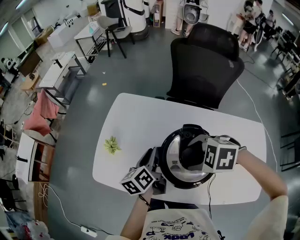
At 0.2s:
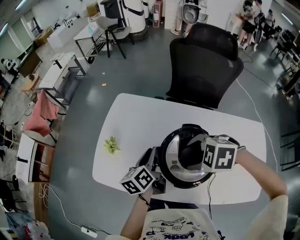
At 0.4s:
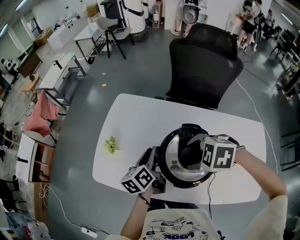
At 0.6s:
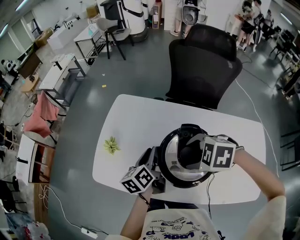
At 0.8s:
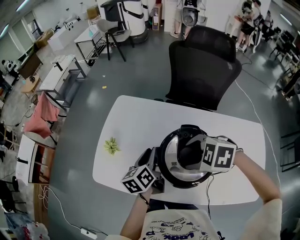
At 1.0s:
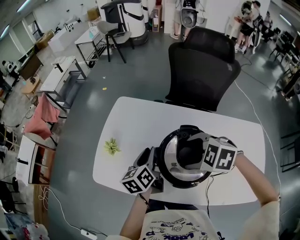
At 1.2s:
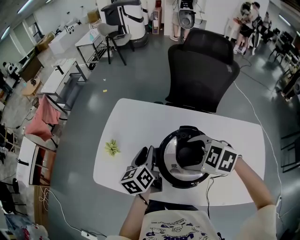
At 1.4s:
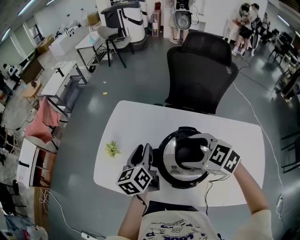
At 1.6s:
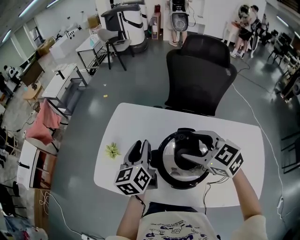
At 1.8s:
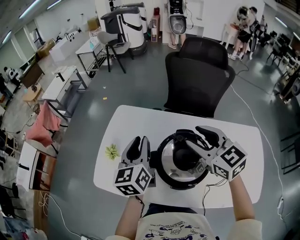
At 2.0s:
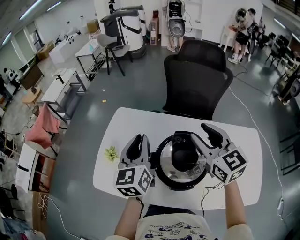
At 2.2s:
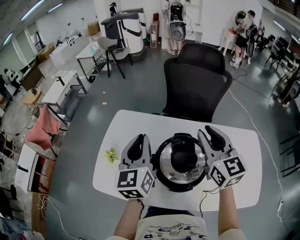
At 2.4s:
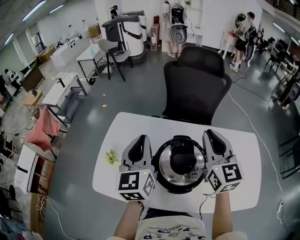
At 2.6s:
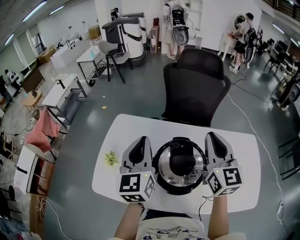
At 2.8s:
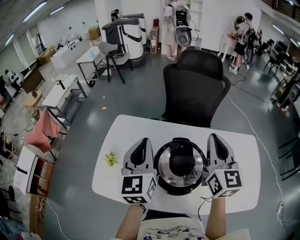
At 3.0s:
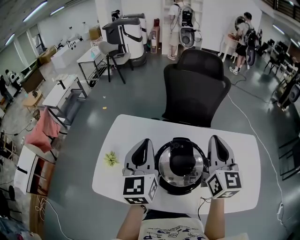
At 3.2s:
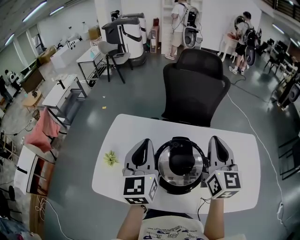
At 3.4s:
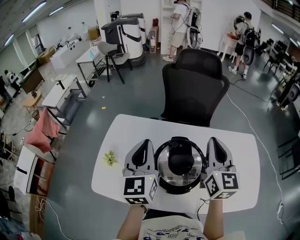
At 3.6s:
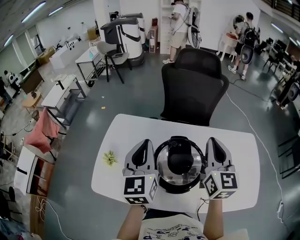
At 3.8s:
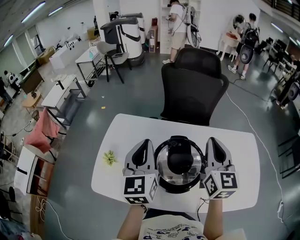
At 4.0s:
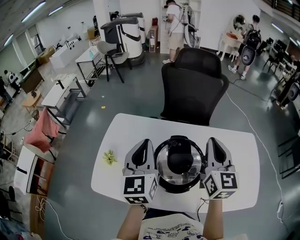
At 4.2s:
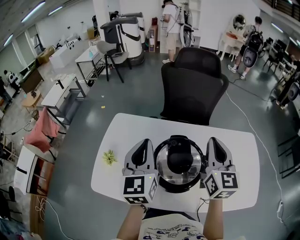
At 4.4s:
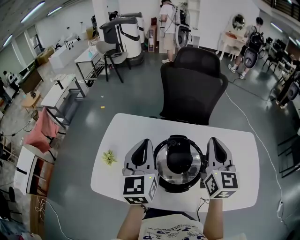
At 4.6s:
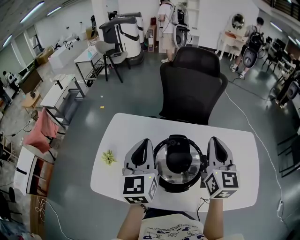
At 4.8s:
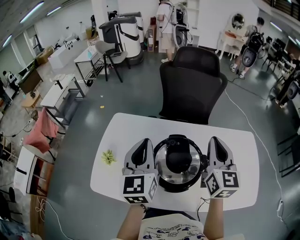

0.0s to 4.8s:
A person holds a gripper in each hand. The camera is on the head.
0.0s to 1.6s: Both grippers move upward, about 10 cm. The right gripper tips its fingers upward by about 30 degrees. The left gripper turns by roughly 20 degrees.
1.6s to 3.2s: The right gripper ends up roughly 15 cm from where it was, angles its fingers upward, by approximately 30 degrees, and closes; the left gripper is displaced upward by roughly 10 cm, changes its angle by some 30 degrees, and closes its fingers.
3.2s to 4.8s: The grippers make only small movements.

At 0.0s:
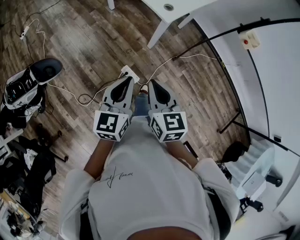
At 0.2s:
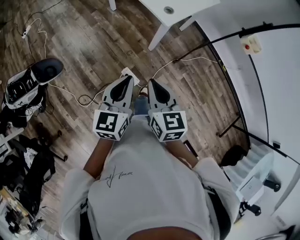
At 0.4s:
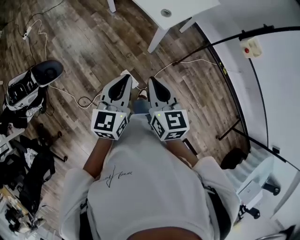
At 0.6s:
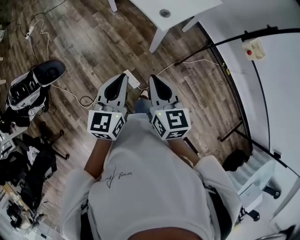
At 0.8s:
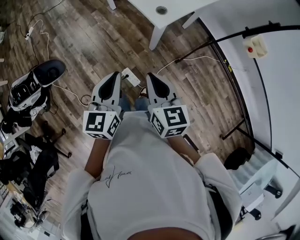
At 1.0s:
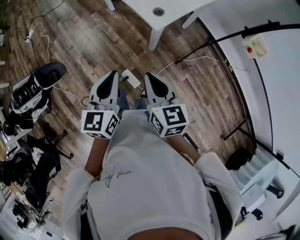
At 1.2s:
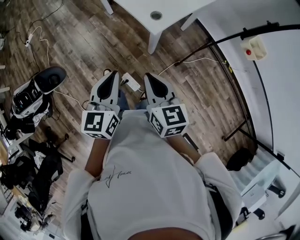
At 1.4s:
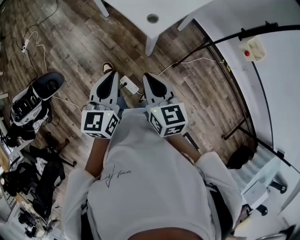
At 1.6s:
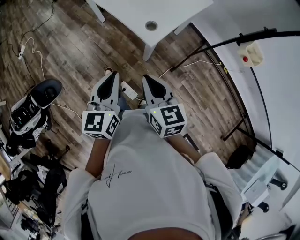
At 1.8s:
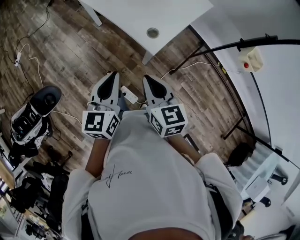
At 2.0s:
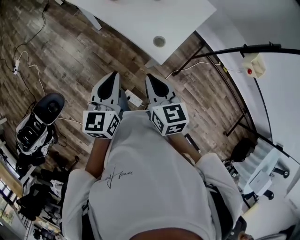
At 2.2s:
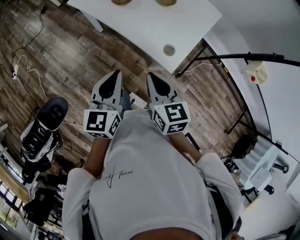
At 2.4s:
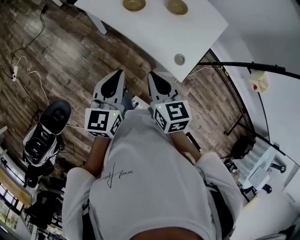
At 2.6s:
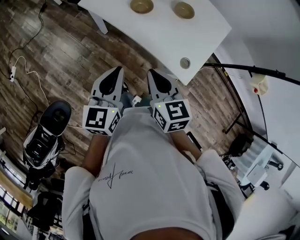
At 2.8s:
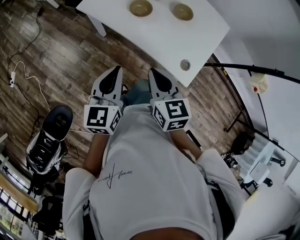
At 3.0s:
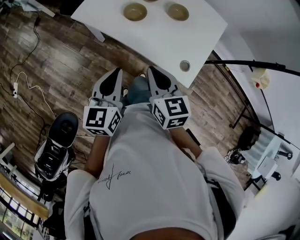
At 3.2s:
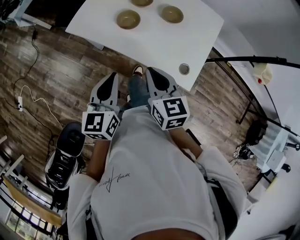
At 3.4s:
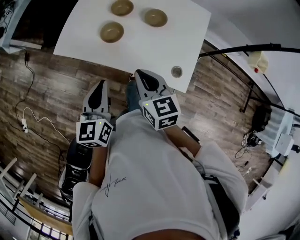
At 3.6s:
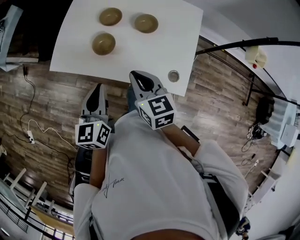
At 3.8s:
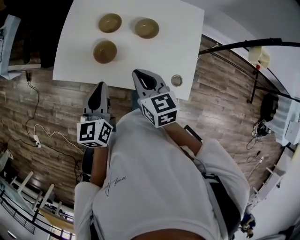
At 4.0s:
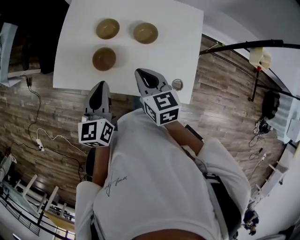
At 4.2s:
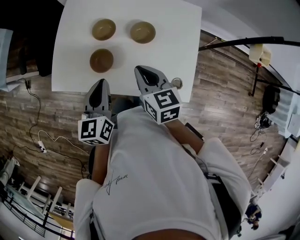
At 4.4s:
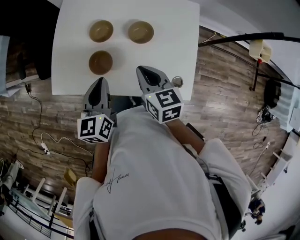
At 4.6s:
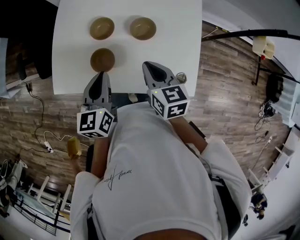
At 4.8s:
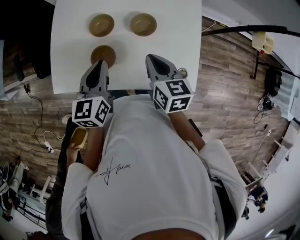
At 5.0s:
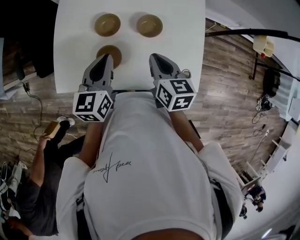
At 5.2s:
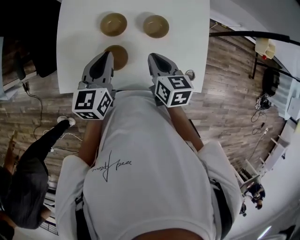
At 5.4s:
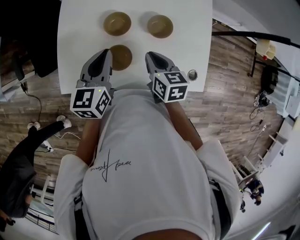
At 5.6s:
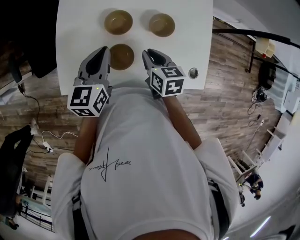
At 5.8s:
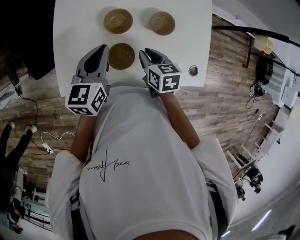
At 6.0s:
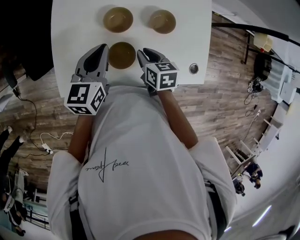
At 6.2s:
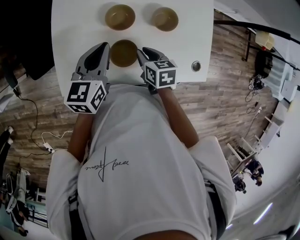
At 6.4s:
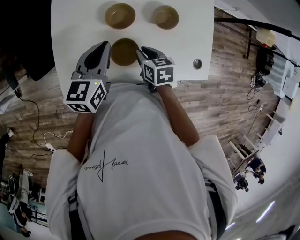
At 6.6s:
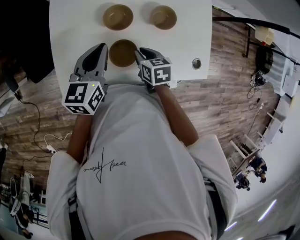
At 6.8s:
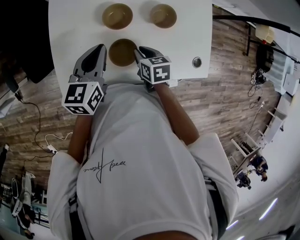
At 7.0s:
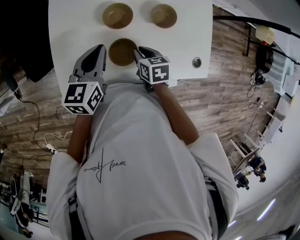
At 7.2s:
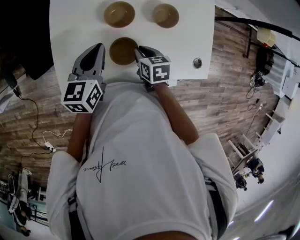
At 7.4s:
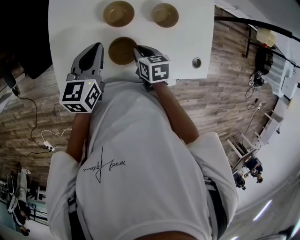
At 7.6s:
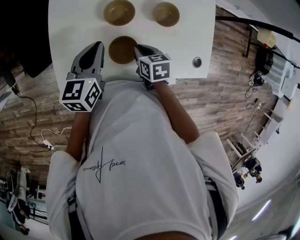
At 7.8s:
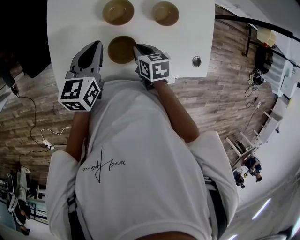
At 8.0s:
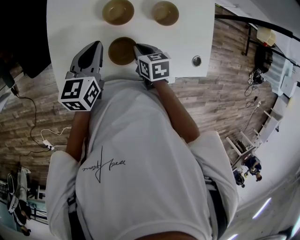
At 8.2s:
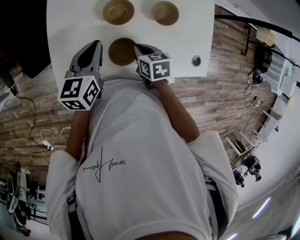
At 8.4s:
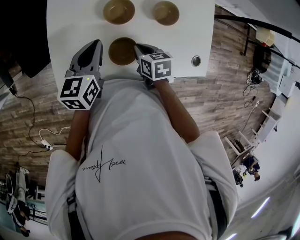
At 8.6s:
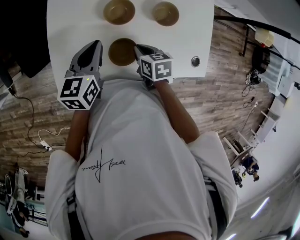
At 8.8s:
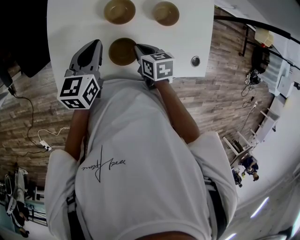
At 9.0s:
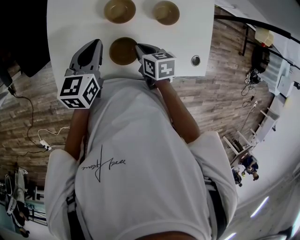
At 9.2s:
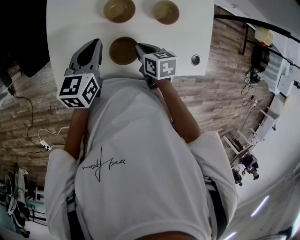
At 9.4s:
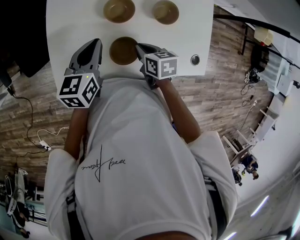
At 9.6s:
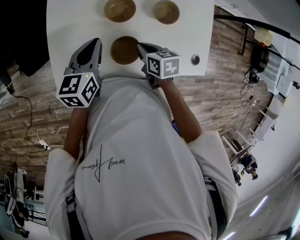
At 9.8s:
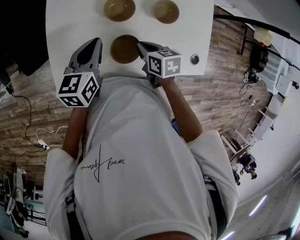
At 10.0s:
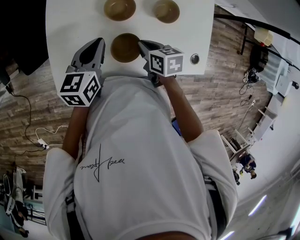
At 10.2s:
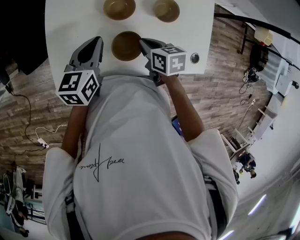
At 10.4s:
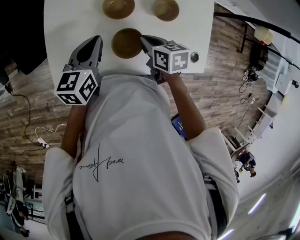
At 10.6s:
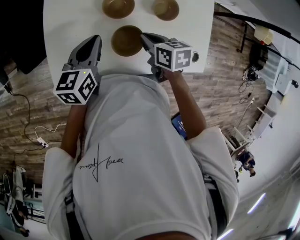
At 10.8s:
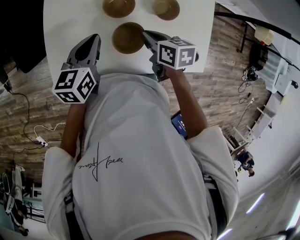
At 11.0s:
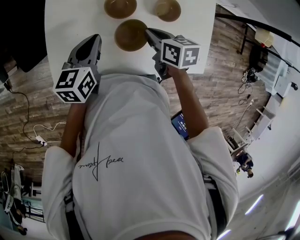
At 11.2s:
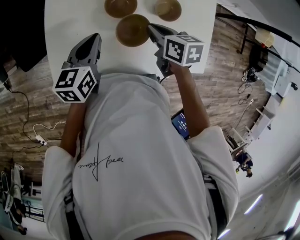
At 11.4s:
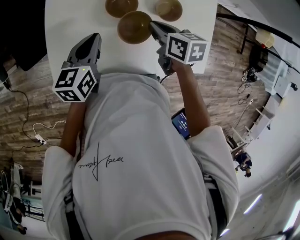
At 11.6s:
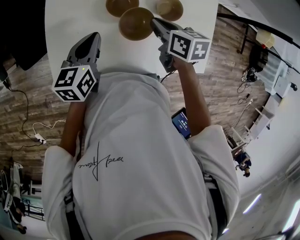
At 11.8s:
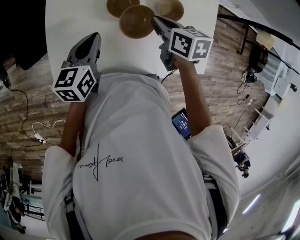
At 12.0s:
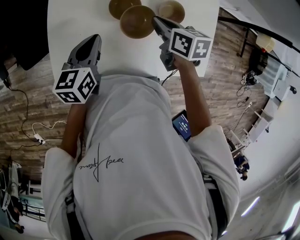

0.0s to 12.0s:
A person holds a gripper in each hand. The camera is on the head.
0.0s to 1.6s: Both grippers move forward, about 20 cm.
1.6s to 3.0s: The two grippers go roughly 35 cm forward and to the left.
3.0s to 4.4s: Both grippers travel together forward, about 20 cm. The right gripper rotates approximately 20 degrees.
4.4s to 6.0s: The left gripper moves forward and to the left, some 15 cm, and turns by roughly 20 degrees. The right gripper heads downward and to the left, covering some 15 cm, and changes its angle by some 20 degrees.
6.0s to 7.6s: The grippers stay close to where they were, moving slightly.
7.6s to 9.0s: The two grippers keep their place.
9.0s to 10.4s: The grippers stay close to where they were, moving slightly.
10.4s to 12.0s: The right gripper is displaced forward by some 10 cm.

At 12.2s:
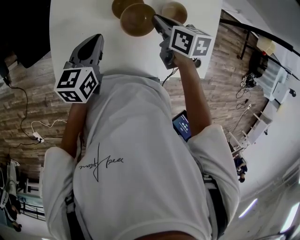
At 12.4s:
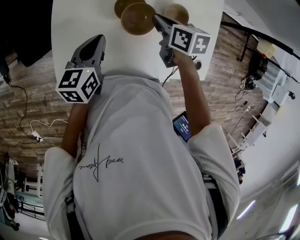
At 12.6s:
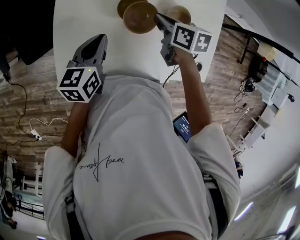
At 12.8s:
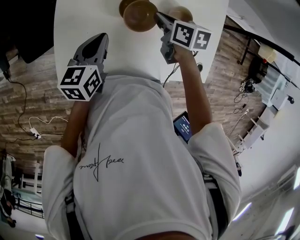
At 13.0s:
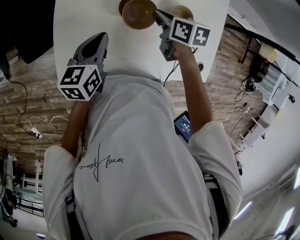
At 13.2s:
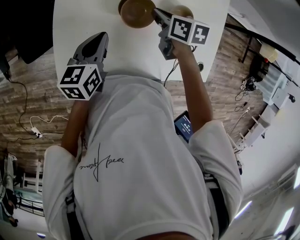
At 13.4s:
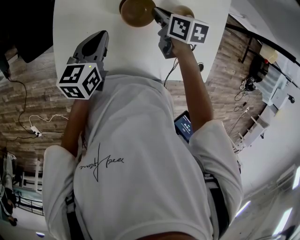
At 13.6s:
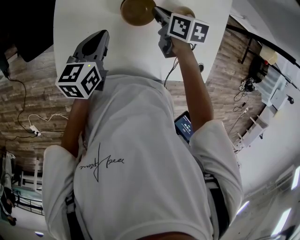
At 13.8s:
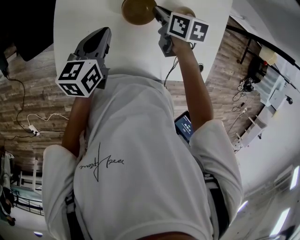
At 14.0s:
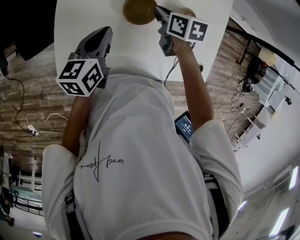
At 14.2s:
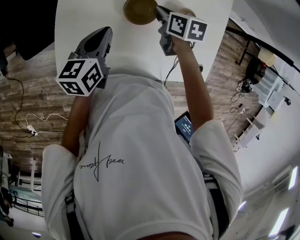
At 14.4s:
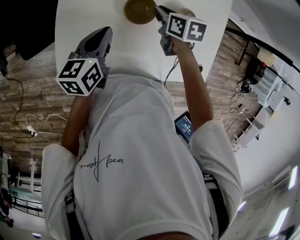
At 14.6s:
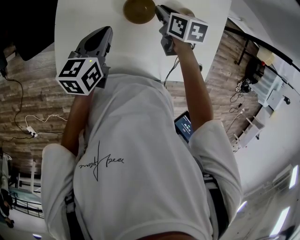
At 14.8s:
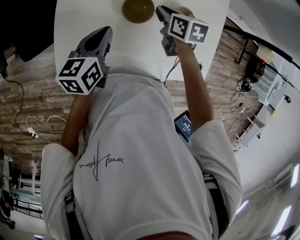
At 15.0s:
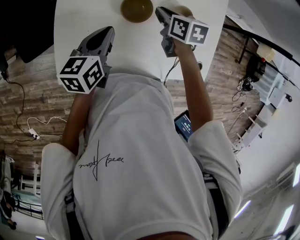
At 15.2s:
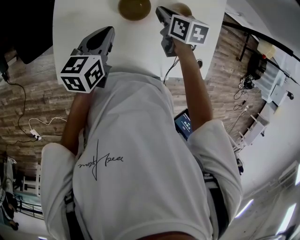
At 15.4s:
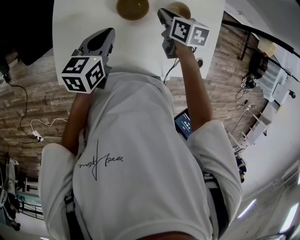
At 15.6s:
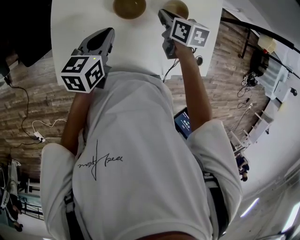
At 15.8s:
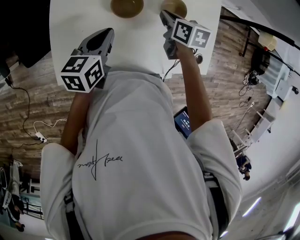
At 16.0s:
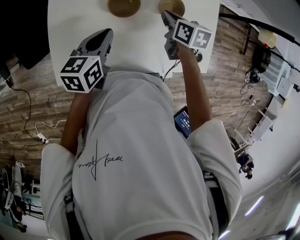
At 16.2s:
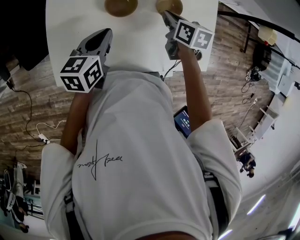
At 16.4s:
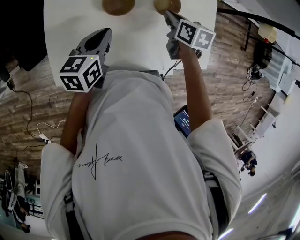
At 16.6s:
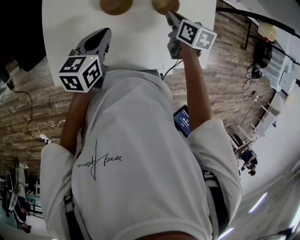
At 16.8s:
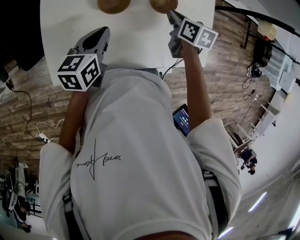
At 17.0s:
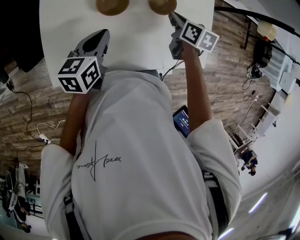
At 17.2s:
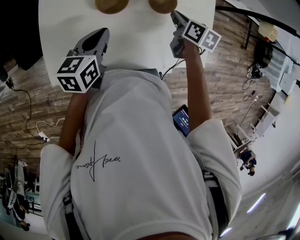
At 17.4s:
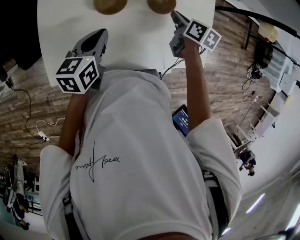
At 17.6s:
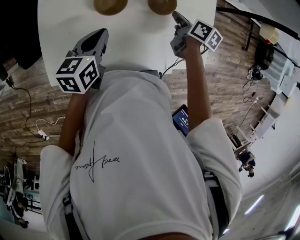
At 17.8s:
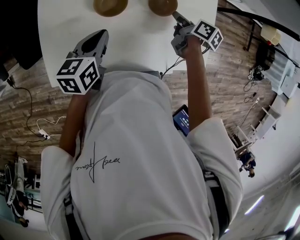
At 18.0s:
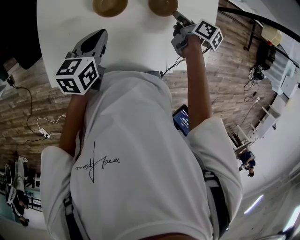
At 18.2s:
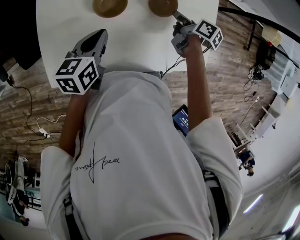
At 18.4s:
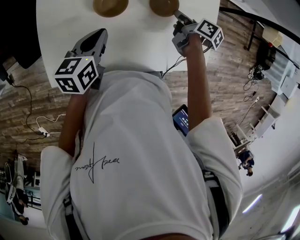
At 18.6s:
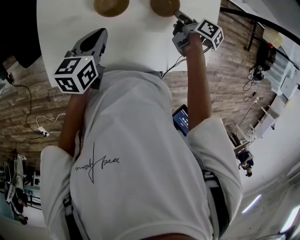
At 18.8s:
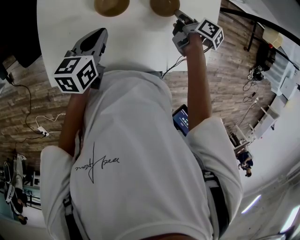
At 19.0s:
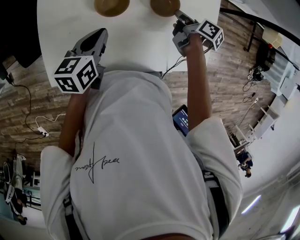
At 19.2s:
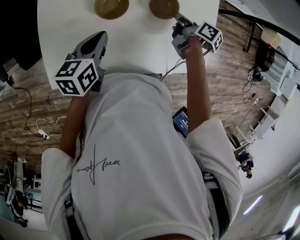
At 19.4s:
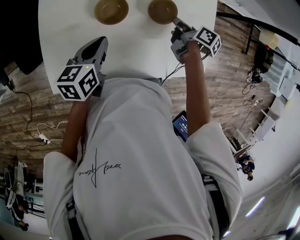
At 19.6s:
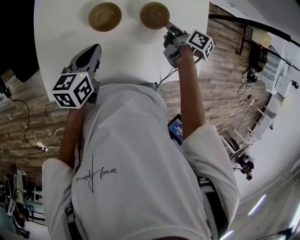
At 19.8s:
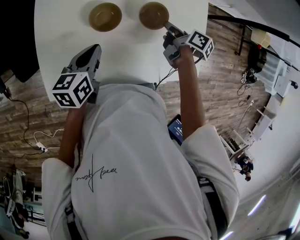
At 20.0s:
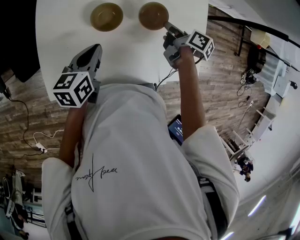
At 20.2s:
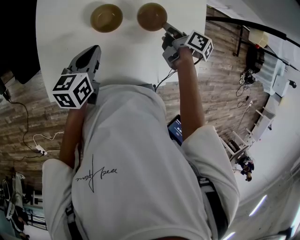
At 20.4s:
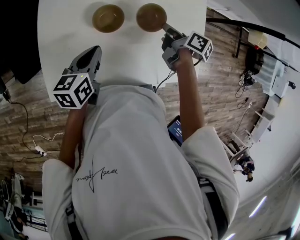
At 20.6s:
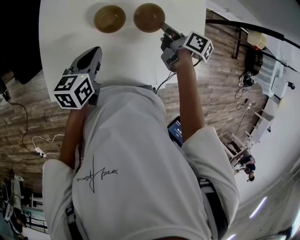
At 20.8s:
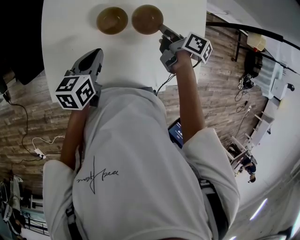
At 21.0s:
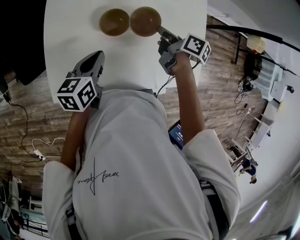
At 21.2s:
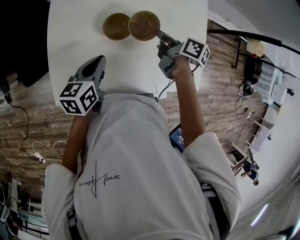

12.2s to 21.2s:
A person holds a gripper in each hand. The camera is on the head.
12.2s to 13.8s: The right gripper ends up roughly 5 cm from where it was.
13.8s to 15.2s: The grippers stay close to where they were, moving slightly.
15.2s to 16.6s: The left gripper changes place by approximately 5 cm, while the right gripper heads to the right, covering some 10 cm.
16.6s to 18.2s: The right gripper moves about 5 cm, and changes its angle by some 30 degrees.
18.2s to 19.8s: There are only small adjustments of the grippers.
19.8s to 21.2s: The right gripper is displaced to the left by some 5 cm.
